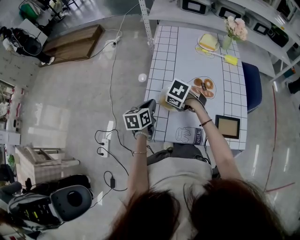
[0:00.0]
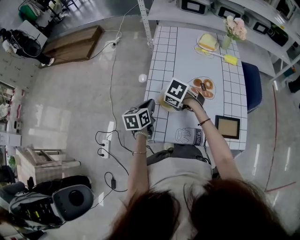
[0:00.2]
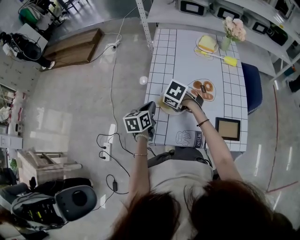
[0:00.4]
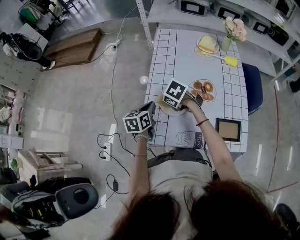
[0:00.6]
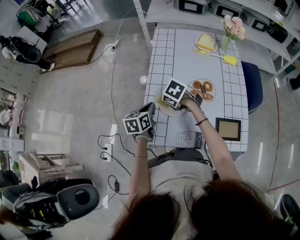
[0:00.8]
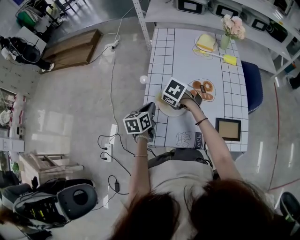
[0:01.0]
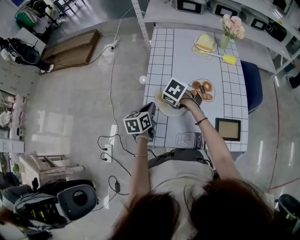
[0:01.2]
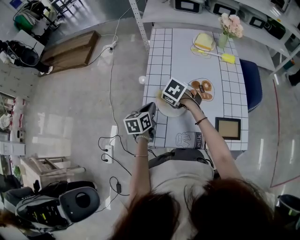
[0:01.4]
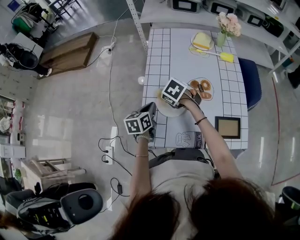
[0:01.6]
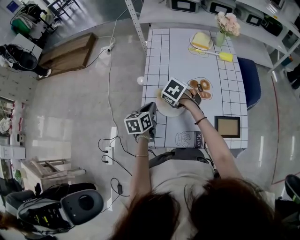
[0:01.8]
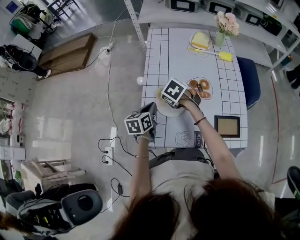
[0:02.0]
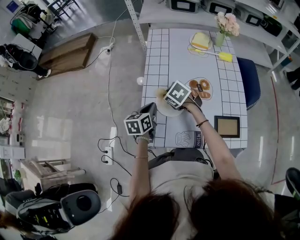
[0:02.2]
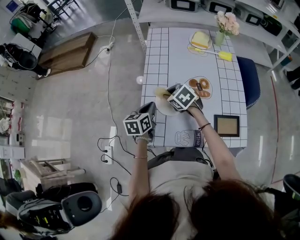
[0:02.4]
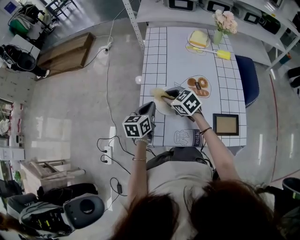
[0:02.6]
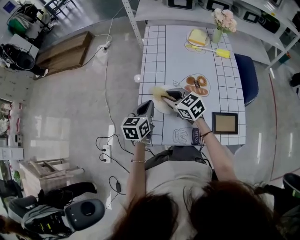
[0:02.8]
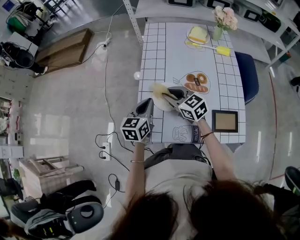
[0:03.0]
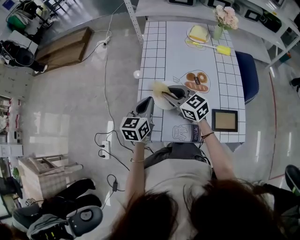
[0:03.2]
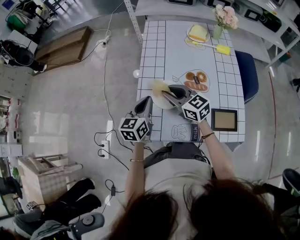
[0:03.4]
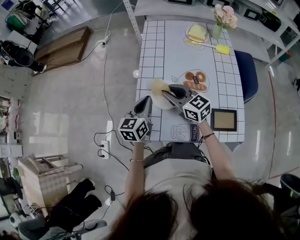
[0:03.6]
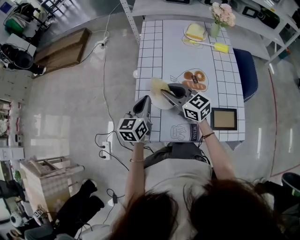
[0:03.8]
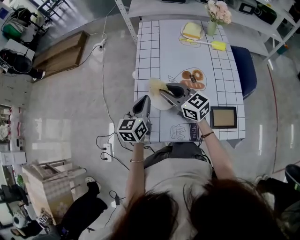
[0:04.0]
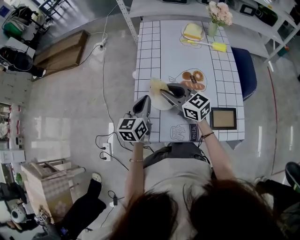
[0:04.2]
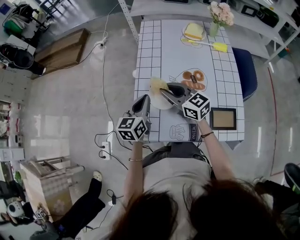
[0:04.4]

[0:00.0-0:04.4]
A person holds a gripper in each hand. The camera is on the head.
0:00.0 to 0:01.4: The right gripper travels forward by some 5 cm.
0:01.4 to 0:03.0: The two grippers go roughly 5 cm upward. The right gripper points its fingers approximately 40 degrees further upward.
0:03.0 to 0:04.4: The grippers make only small movements.

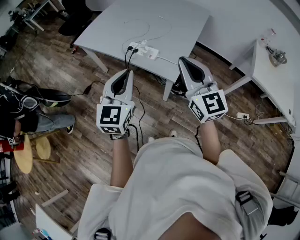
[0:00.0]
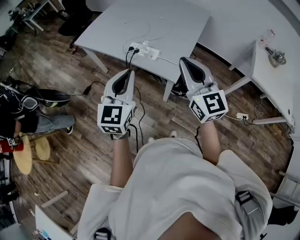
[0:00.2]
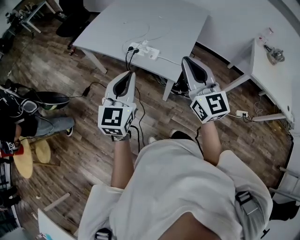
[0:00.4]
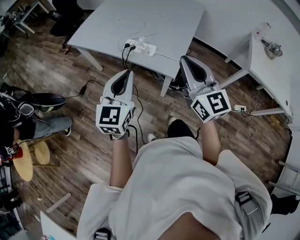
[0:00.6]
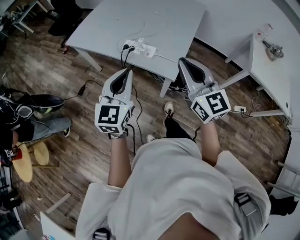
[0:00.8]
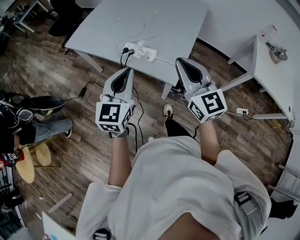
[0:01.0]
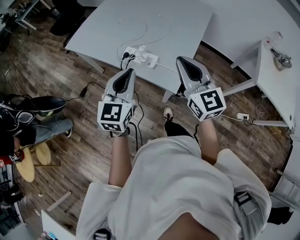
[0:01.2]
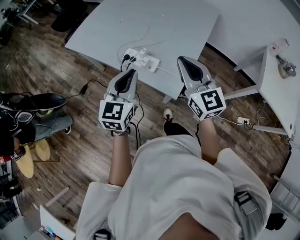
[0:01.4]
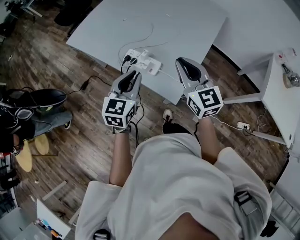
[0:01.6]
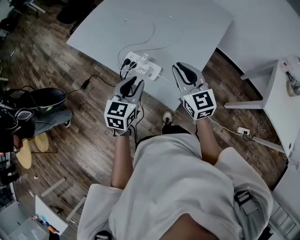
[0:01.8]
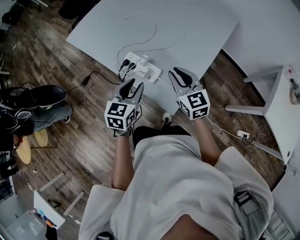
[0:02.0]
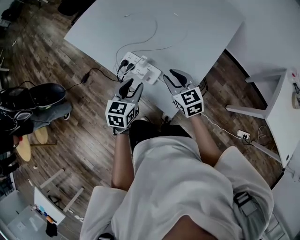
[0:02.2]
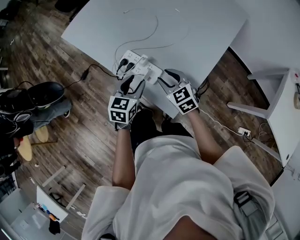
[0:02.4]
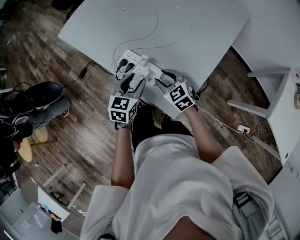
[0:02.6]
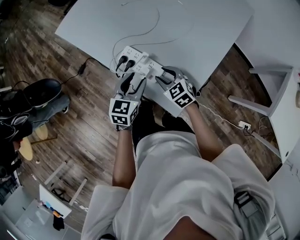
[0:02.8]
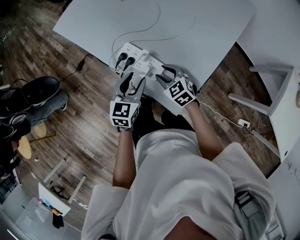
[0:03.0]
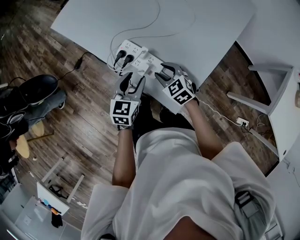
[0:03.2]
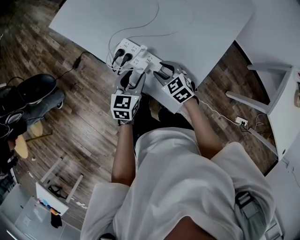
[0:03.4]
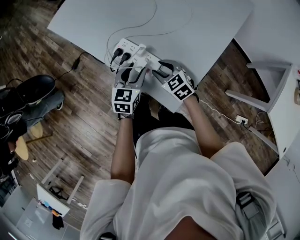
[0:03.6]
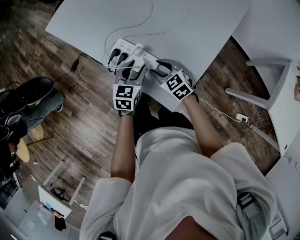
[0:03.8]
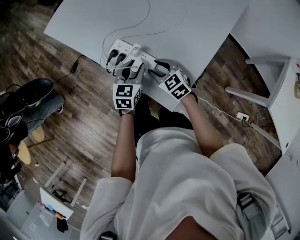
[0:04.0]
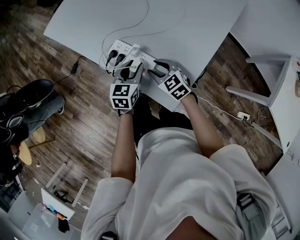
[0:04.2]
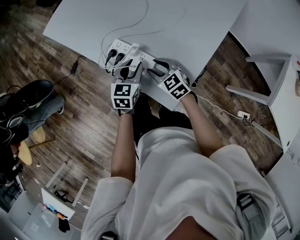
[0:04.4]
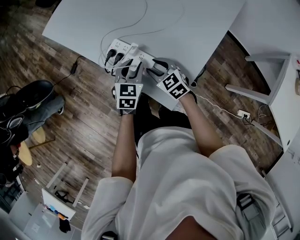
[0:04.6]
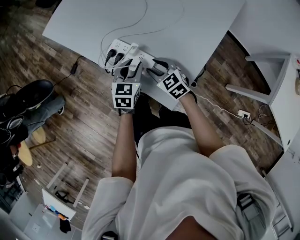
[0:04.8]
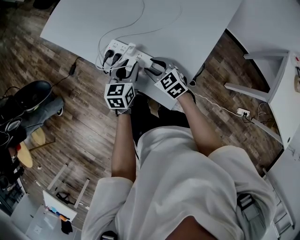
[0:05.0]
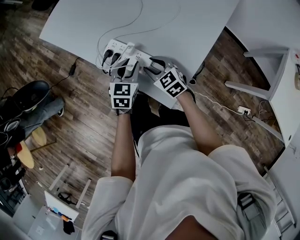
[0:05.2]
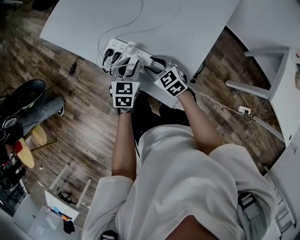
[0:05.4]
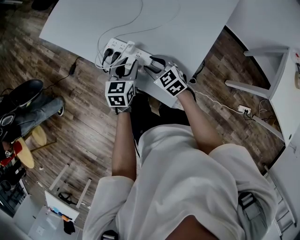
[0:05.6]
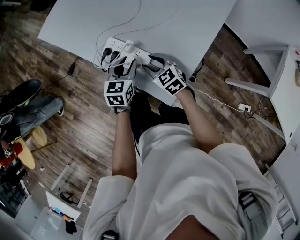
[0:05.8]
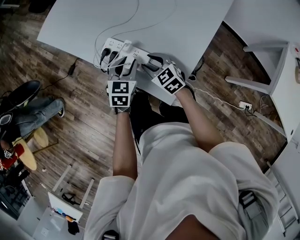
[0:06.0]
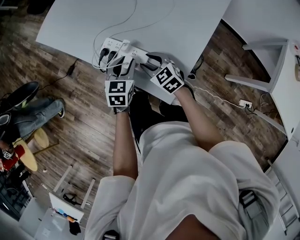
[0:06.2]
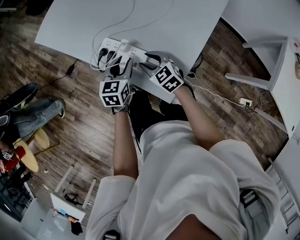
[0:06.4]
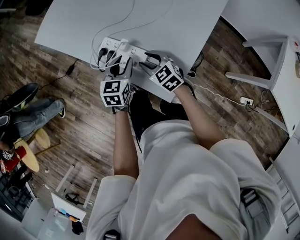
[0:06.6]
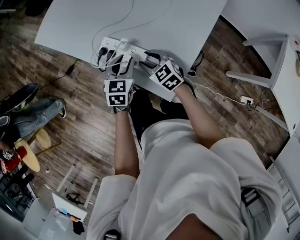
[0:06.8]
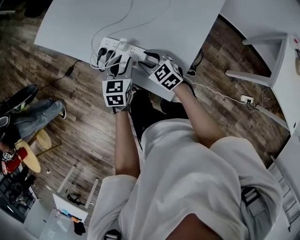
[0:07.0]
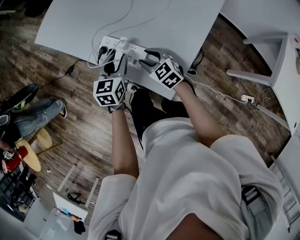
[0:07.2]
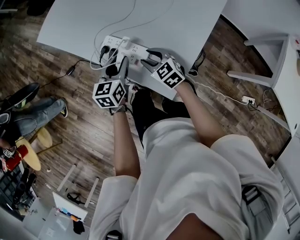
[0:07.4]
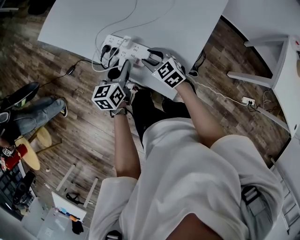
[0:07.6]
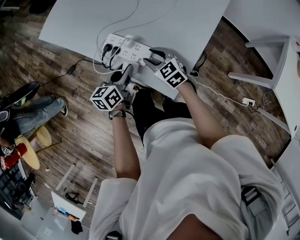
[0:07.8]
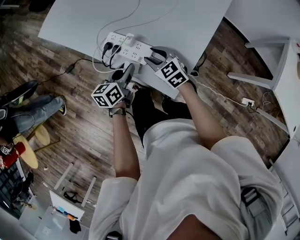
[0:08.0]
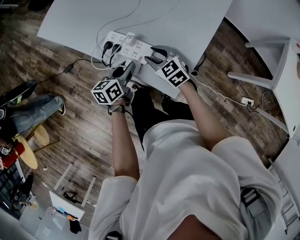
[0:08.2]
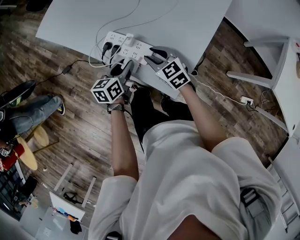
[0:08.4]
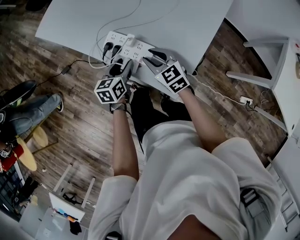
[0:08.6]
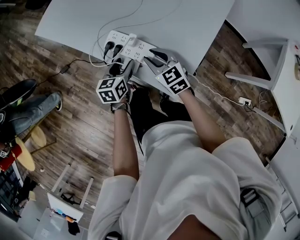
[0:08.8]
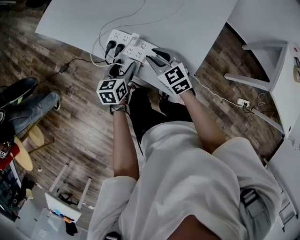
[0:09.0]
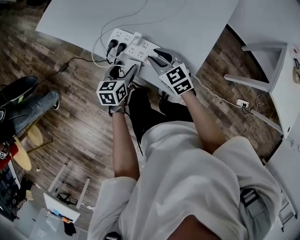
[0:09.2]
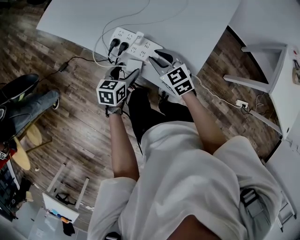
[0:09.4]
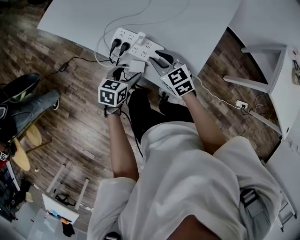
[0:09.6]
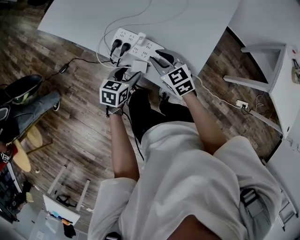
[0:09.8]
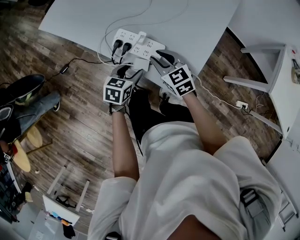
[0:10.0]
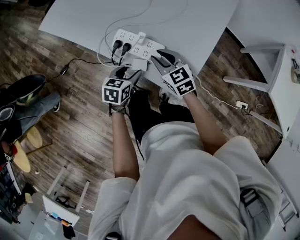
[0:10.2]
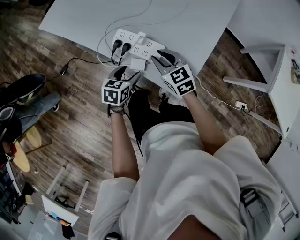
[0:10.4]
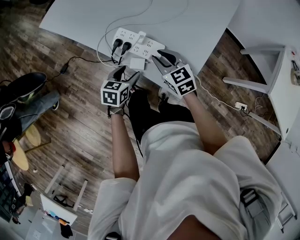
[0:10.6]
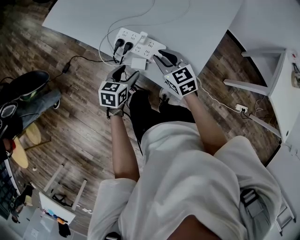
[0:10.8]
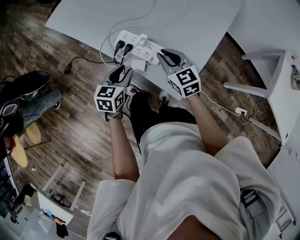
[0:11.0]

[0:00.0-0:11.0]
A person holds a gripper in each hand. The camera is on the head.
0:00.0 to 0:01.6: The two grippers go approximately 25 cm forward and downward.
0:01.6 to 0:03.2: The left gripper moves downward and forward, approximately 20 cm, and opens up, while the right gripper is displaced downward by about 30 cm, tips its fingers downward by roughly 40 degrees, and opens.
0:03.2 to 0:04.8: The left gripper changes place by roughly 5 cm.
0:04.8 to 0:06.2: The grippers move only a little.
0:06.2 to 0:07.8: The left gripper moves approximately 5 cm, and rotates approximately 30 degrees.
0:07.8 to 0:09.4: The left gripper shifts approximately 5 cm downward, swivels roughly 20 degrees, and opens.
0:09.4 to 0:11.0: Both grippers travel together upward, roughly 5 cm. The left gripper closes up.

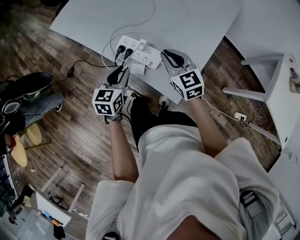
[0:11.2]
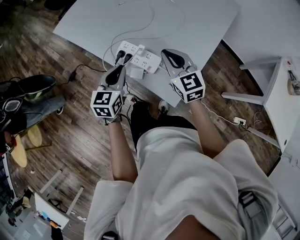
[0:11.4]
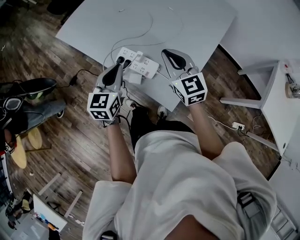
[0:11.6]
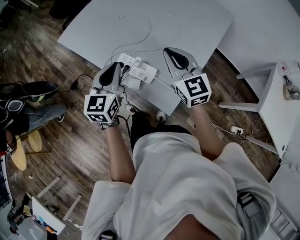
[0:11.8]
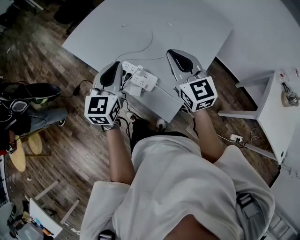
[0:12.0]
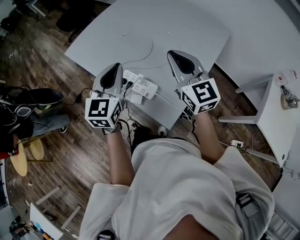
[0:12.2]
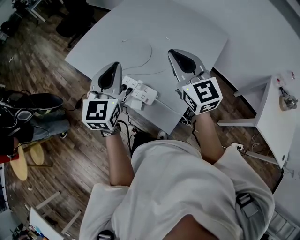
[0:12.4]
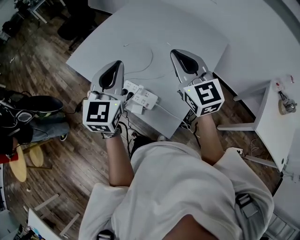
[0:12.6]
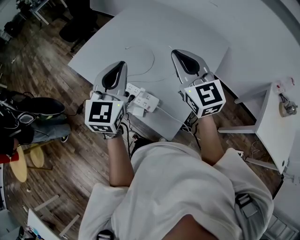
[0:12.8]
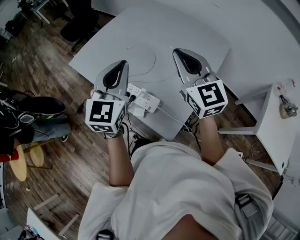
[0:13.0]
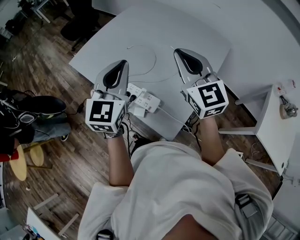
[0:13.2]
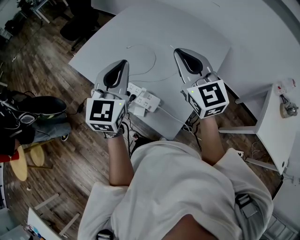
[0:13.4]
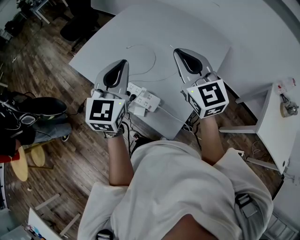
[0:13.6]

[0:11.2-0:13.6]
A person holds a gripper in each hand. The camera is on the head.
0:11.2 to 0:12.4: The two grippers go approximately 25 cm upward. The right gripper swivels some 20 degrees; the left gripper changes its angle by about 30 degrees.
0:12.4 to 0:13.6: The grippers move only a little.

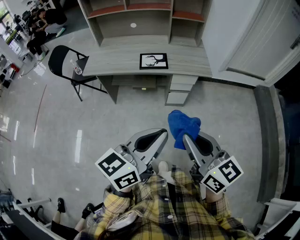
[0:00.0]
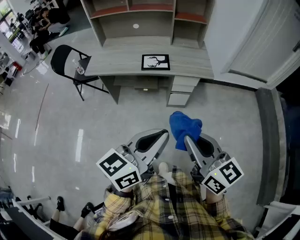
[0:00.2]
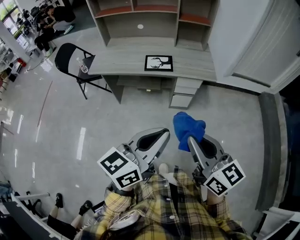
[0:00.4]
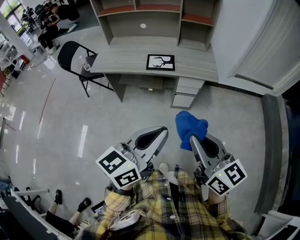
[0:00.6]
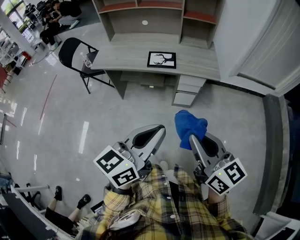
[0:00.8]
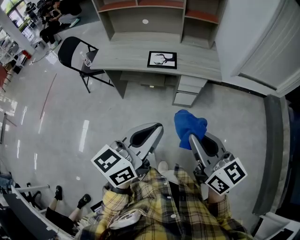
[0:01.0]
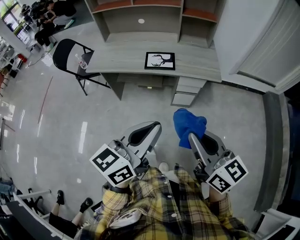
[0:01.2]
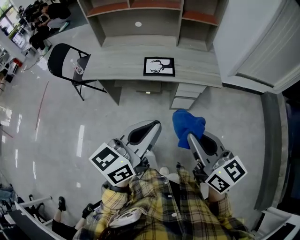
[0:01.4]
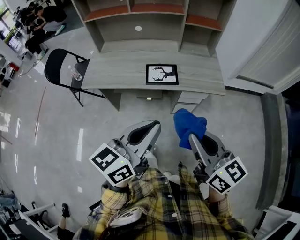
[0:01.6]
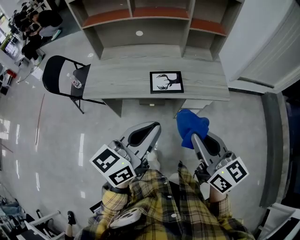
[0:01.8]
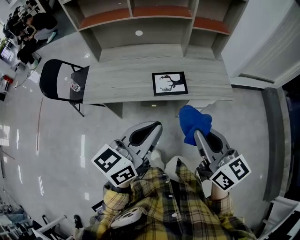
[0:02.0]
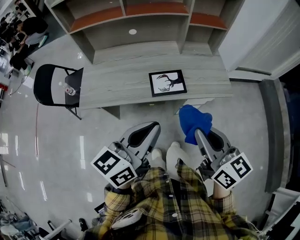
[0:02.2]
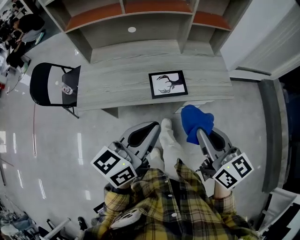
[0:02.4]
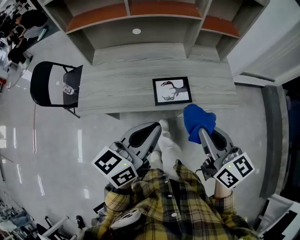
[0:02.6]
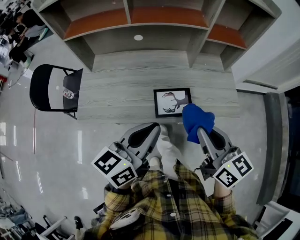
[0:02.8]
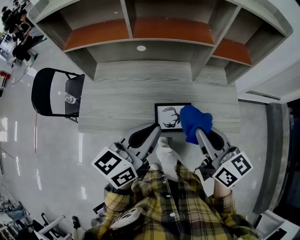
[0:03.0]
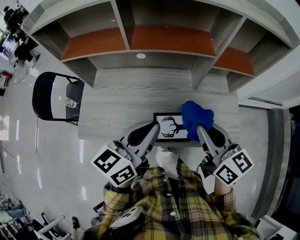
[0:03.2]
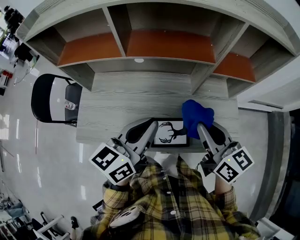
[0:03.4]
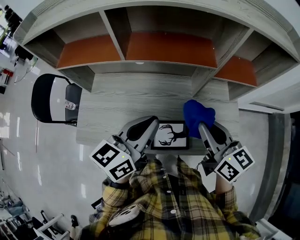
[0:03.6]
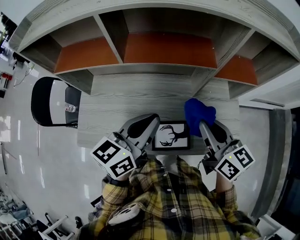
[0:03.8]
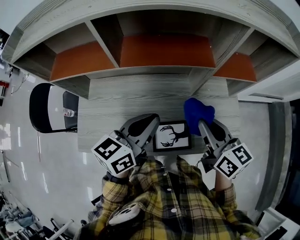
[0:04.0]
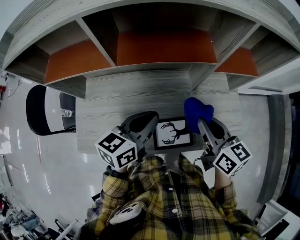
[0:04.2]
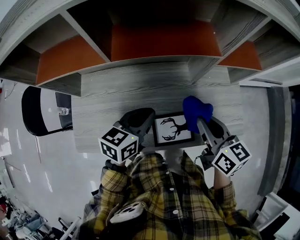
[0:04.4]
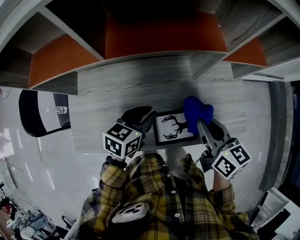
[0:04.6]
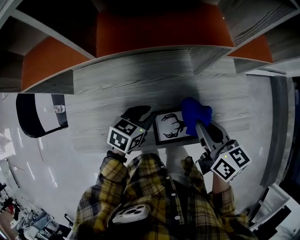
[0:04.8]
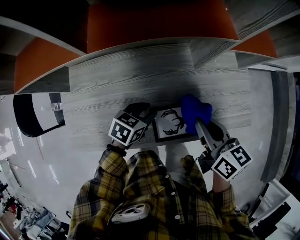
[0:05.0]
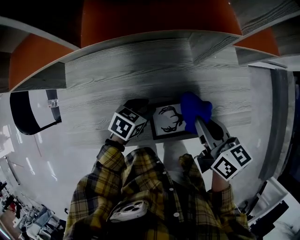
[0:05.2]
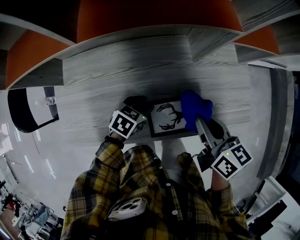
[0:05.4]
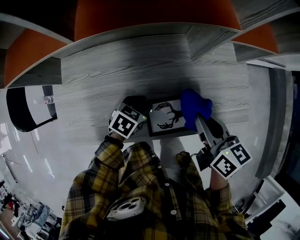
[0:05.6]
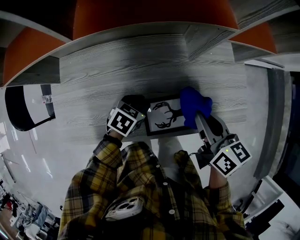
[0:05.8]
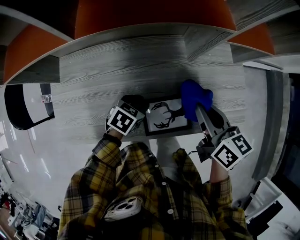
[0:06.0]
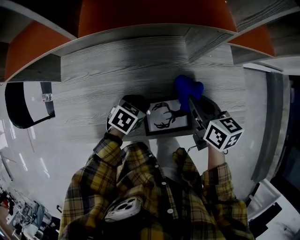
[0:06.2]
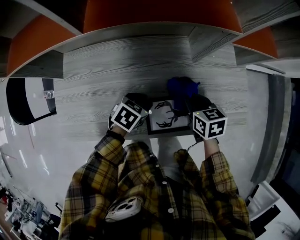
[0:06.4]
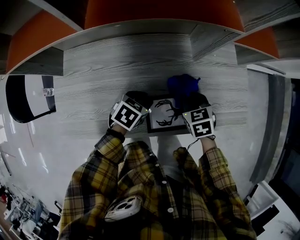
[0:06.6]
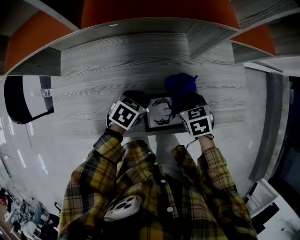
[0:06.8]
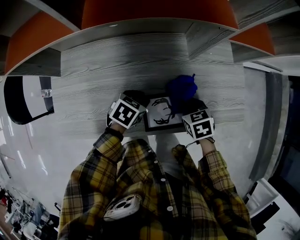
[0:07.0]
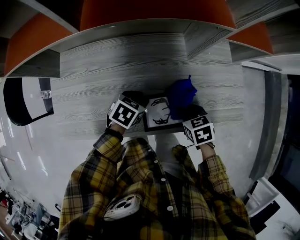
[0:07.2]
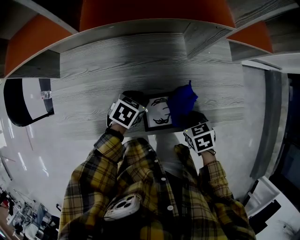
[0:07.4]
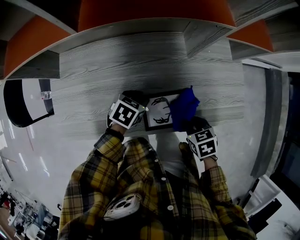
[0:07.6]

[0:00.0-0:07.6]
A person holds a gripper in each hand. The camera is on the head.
0:00.0 to 0:01.6: Both grippers move forward, roughly 20 cm.
0:01.6 to 0:03.0: Both grippers travel together forward, approximately 30 cm.
0:03.0 to 0:04.6: The right gripper shifts roughly 15 cm forward and downward. The left gripper shifts about 25 cm downward and forward, and turns by approximately 30 degrees.
0:04.6 to 0:06.0: The left gripper moves downward, some 15 cm, and turns by roughly 30 degrees.
0:06.0 to 0:07.6: The right gripper moves downward and backward, some 20 cm, and tips its fingers downward by approximately 40 degrees.
